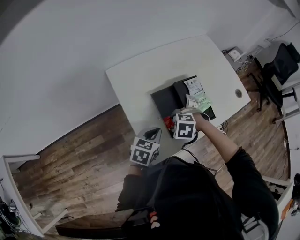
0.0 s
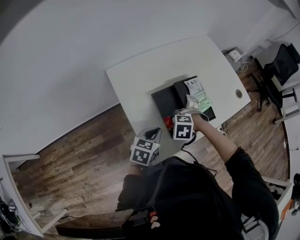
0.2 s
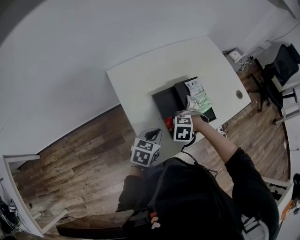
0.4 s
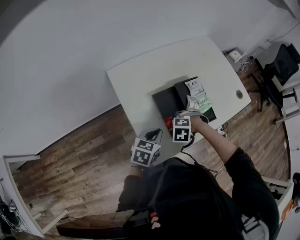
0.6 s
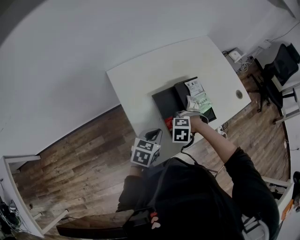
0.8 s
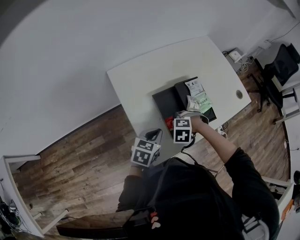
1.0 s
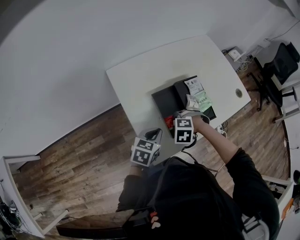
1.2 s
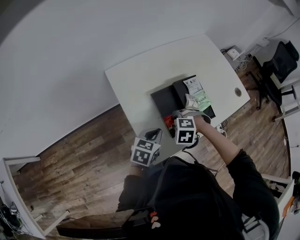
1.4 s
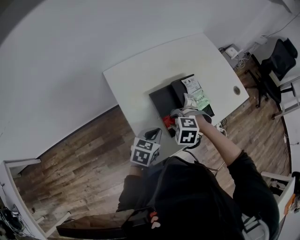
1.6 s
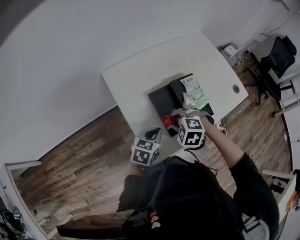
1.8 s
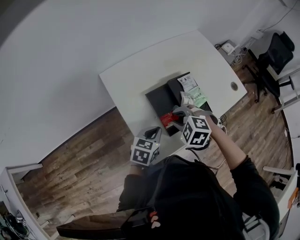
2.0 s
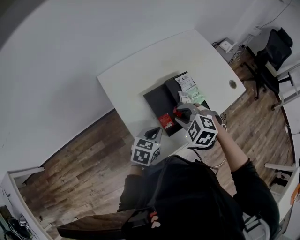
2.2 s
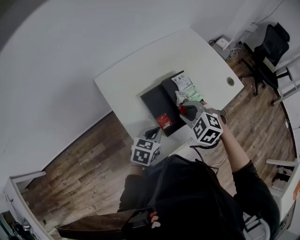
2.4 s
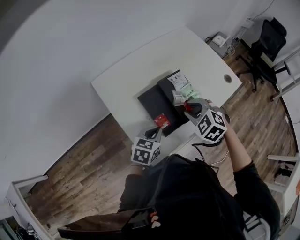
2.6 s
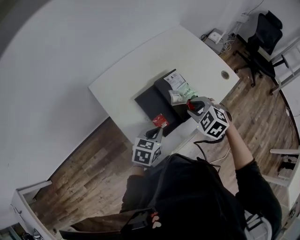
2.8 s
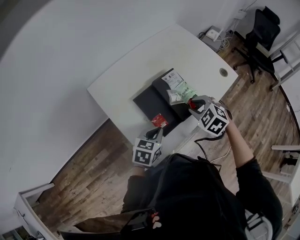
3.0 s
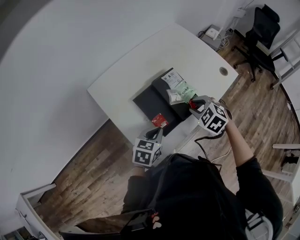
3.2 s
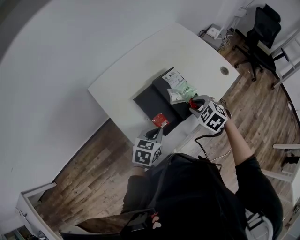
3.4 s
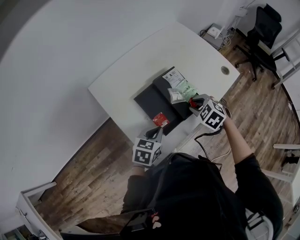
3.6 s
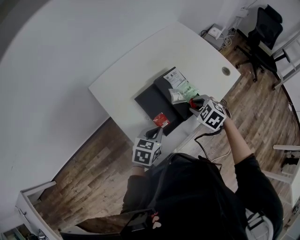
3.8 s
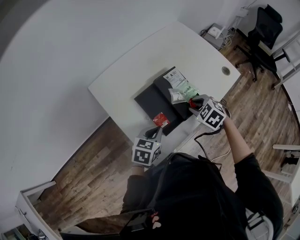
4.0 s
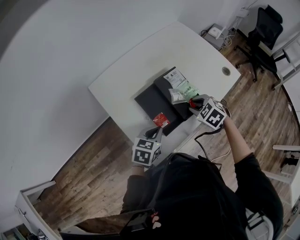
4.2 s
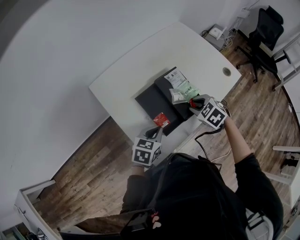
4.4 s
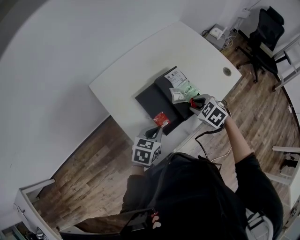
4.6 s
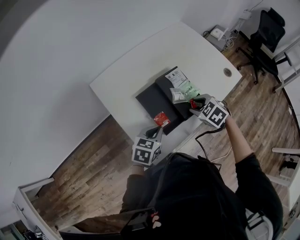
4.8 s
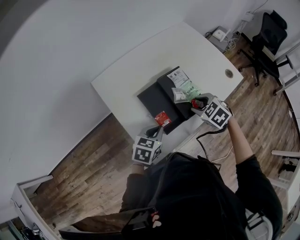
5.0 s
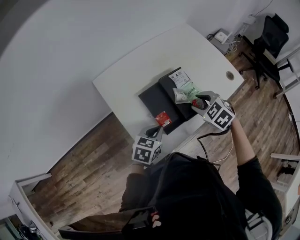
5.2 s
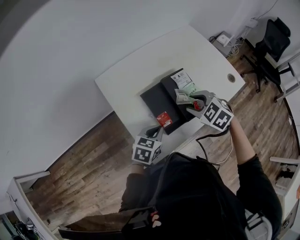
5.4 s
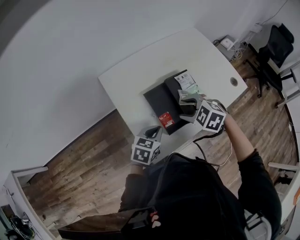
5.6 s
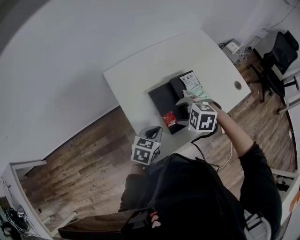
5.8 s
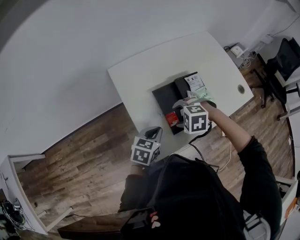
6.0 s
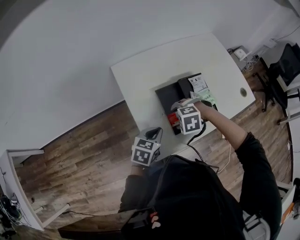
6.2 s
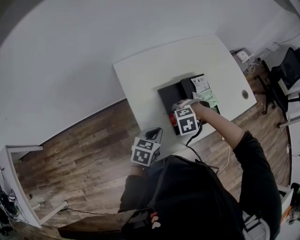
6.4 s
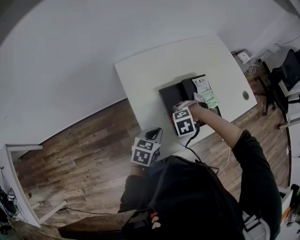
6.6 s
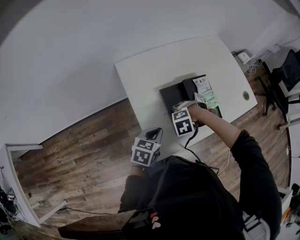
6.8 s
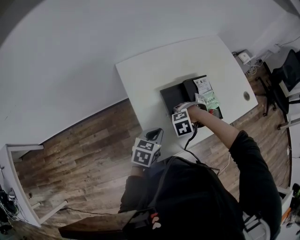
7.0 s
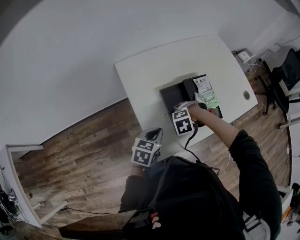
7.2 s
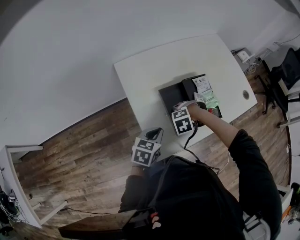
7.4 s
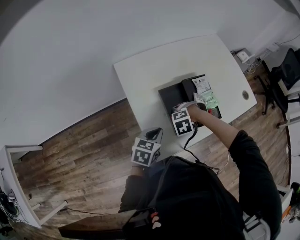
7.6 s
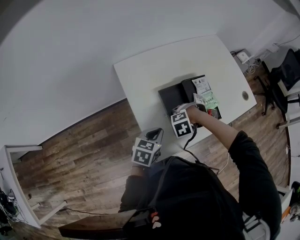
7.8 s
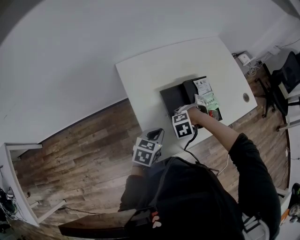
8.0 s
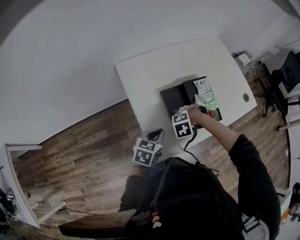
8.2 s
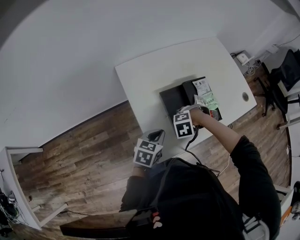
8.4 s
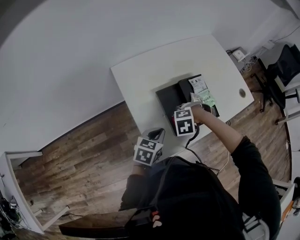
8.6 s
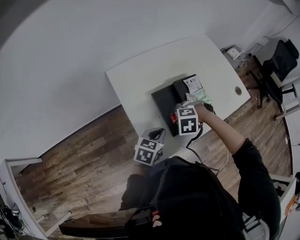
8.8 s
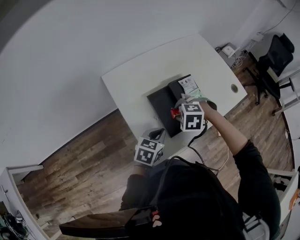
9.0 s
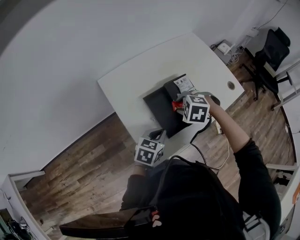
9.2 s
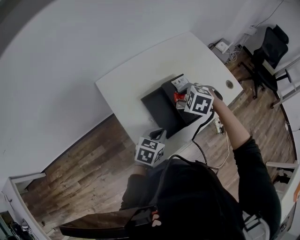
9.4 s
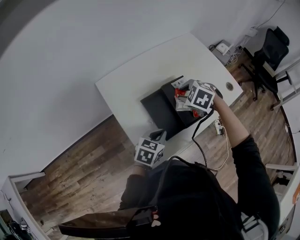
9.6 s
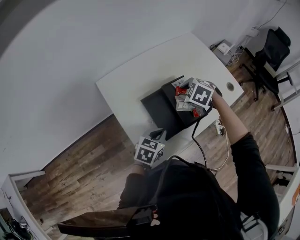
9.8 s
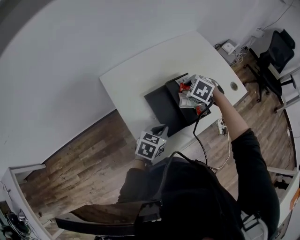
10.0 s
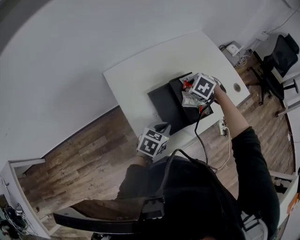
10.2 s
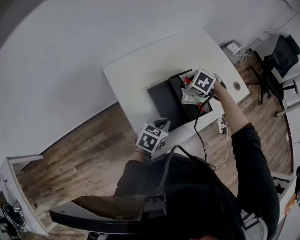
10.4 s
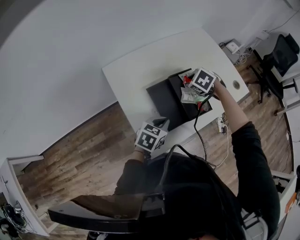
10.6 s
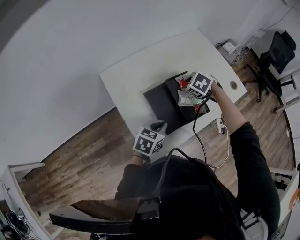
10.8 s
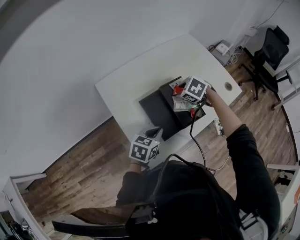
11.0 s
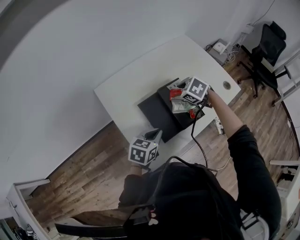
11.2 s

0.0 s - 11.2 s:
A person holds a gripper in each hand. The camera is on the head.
0.0 s - 1.6 s: The grippers make only small movements.
1.6 s - 3.2 s: The left gripper changes place by some 5 cm, while the right gripper moves roughly 15 cm, and changes its angle by some 40 degrees.
3.2 s - 4.8 s: The grippers make only small movements.
4.8 s - 6.4 s: The right gripper shifts by some 15 cm, rotates around the line of its fingers by approximately 60 degrees, counterclockwise from behind, and opens its fingers, while the left gripper changes place by about 5 cm.
6.4 s - 8.0 s: The right gripper closes.
8.0 s - 9.6 s: The left gripper moves about 10 cm, while the right gripper ends up roughly 20 cm from where it was, and twists approximately 40 degrees clockwise, seen from behind.
9.6 s - 11.2 s: There are only small adjustments of the grippers.

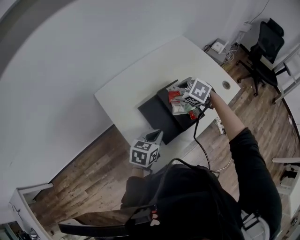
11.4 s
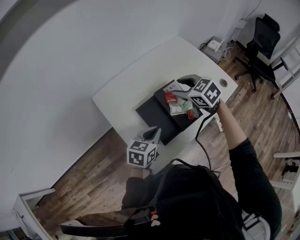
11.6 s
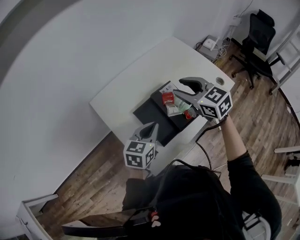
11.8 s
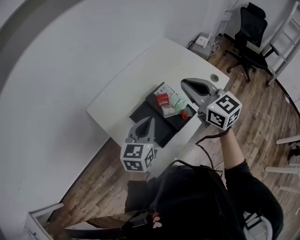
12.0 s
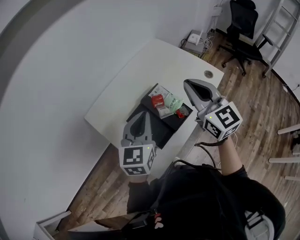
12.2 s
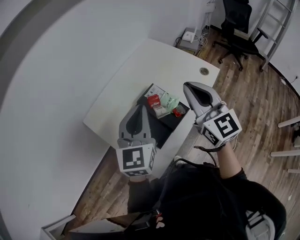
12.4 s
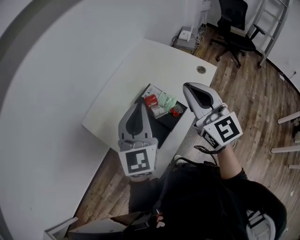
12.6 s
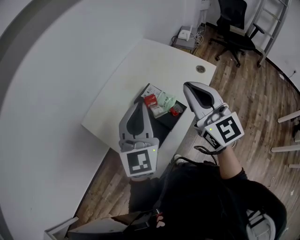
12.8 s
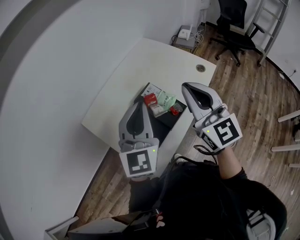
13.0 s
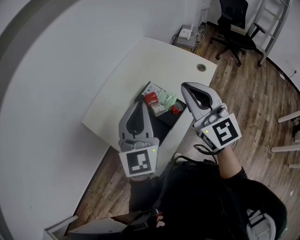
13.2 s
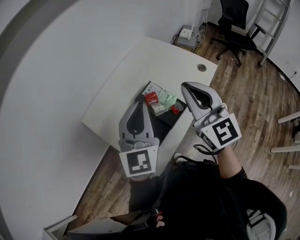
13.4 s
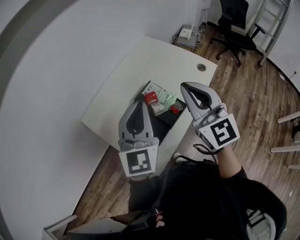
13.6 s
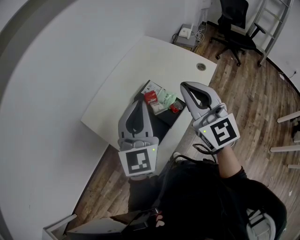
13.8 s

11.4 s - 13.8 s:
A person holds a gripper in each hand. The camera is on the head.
11.4 s - 12.6 s: The right gripper travels upward and backward by about 30 cm, angles its fingers upward, by some 60 degrees, and closes up, while the left gripper is displaced upward by about 25 cm, and tips its fingers upward by some 40 degrees.
12.6 s - 13.8 s: The grippers move only a little.

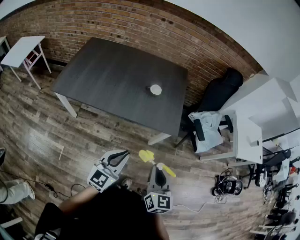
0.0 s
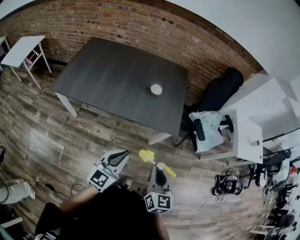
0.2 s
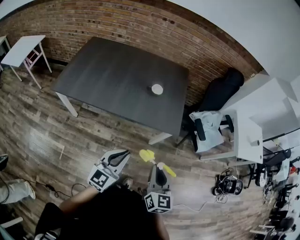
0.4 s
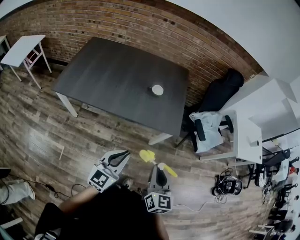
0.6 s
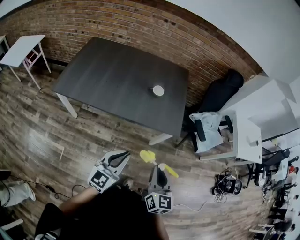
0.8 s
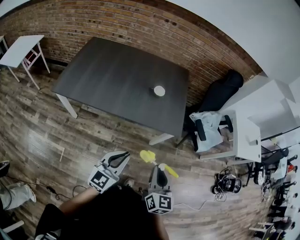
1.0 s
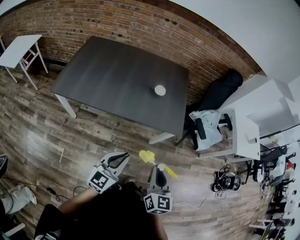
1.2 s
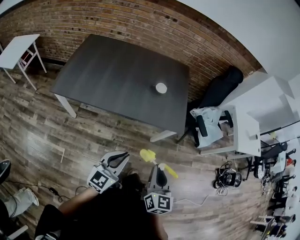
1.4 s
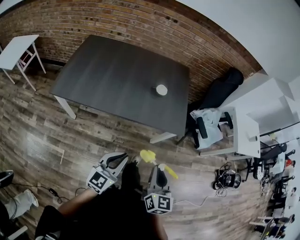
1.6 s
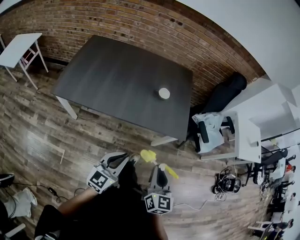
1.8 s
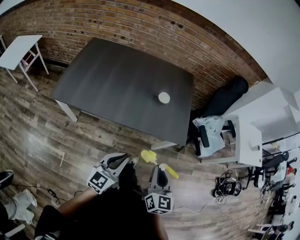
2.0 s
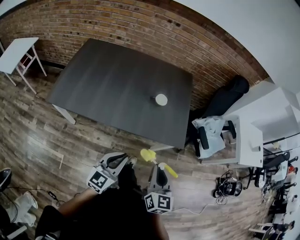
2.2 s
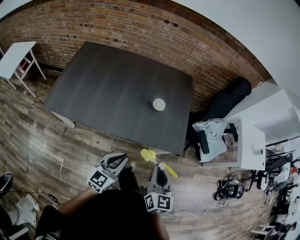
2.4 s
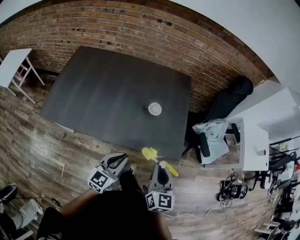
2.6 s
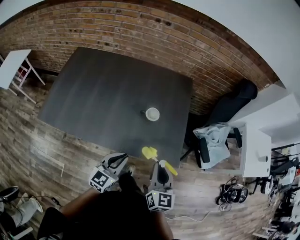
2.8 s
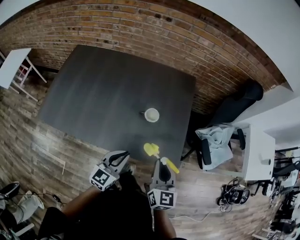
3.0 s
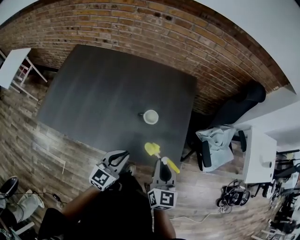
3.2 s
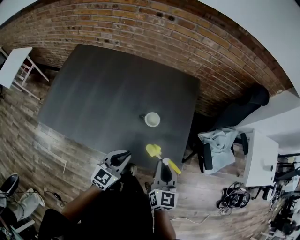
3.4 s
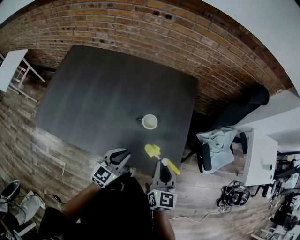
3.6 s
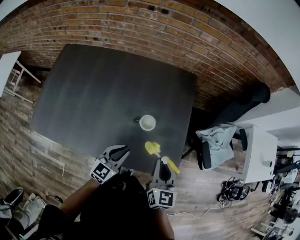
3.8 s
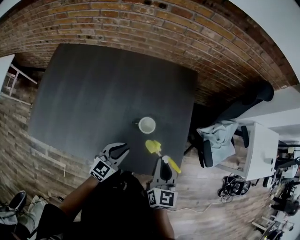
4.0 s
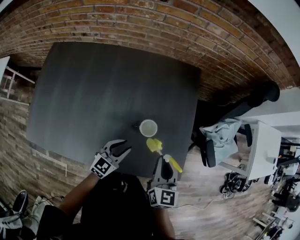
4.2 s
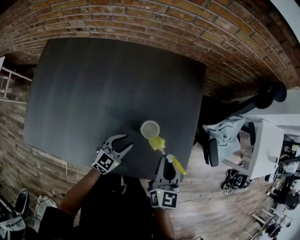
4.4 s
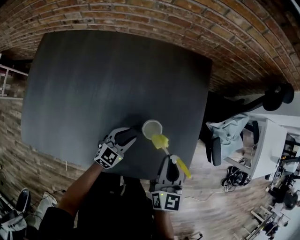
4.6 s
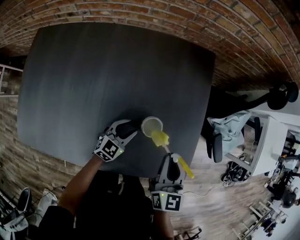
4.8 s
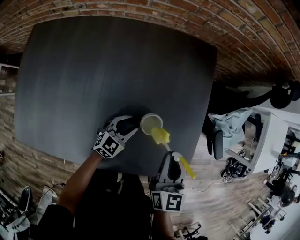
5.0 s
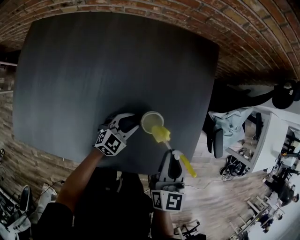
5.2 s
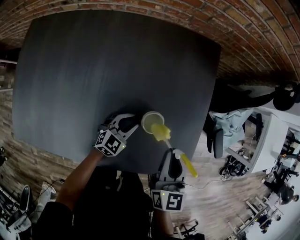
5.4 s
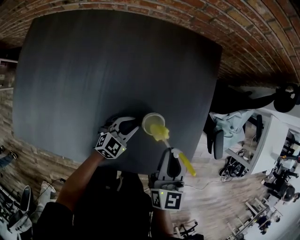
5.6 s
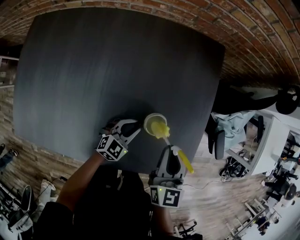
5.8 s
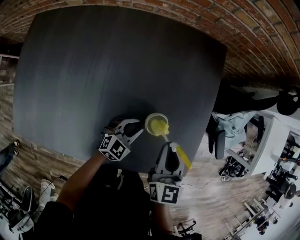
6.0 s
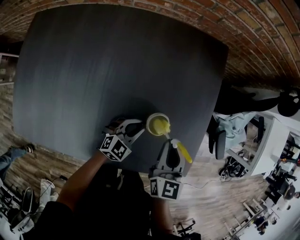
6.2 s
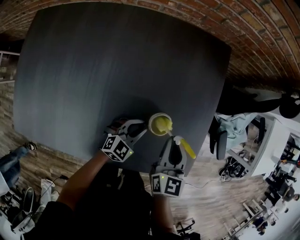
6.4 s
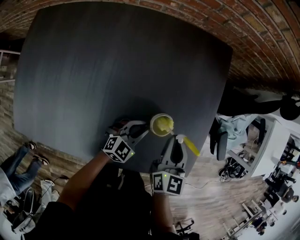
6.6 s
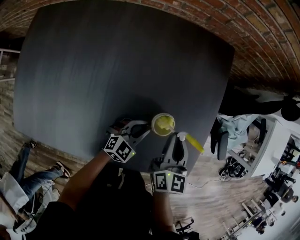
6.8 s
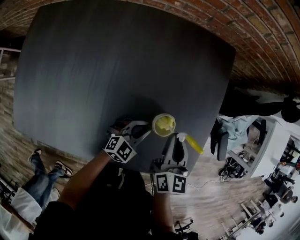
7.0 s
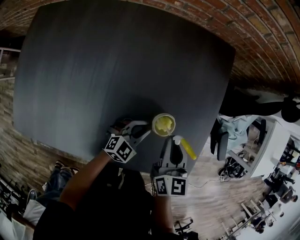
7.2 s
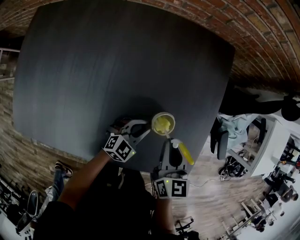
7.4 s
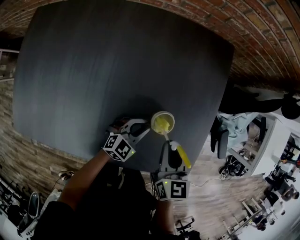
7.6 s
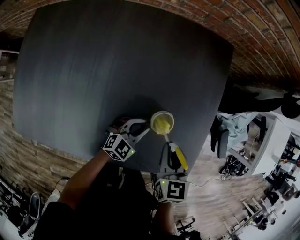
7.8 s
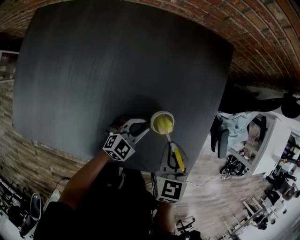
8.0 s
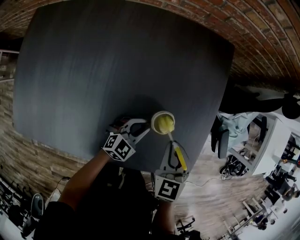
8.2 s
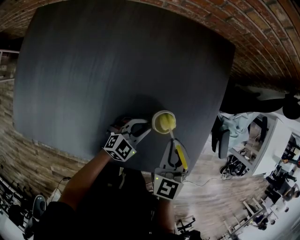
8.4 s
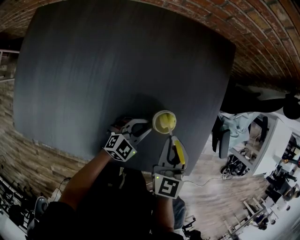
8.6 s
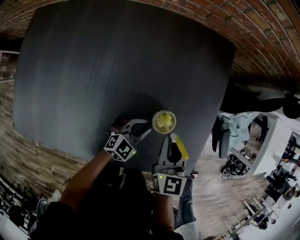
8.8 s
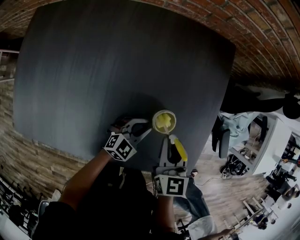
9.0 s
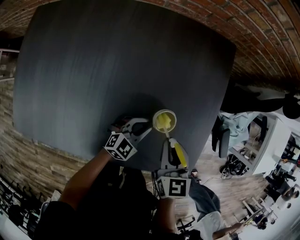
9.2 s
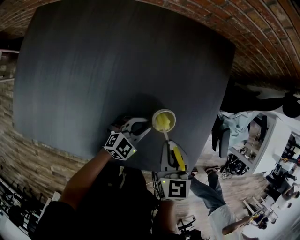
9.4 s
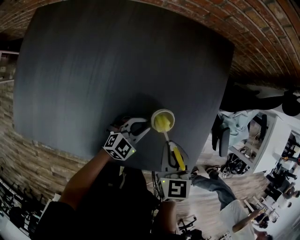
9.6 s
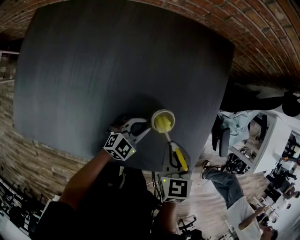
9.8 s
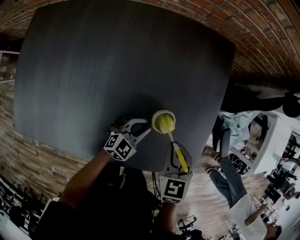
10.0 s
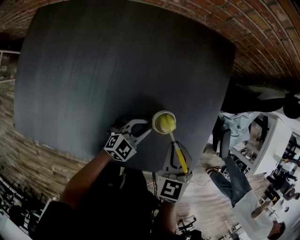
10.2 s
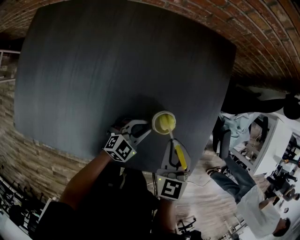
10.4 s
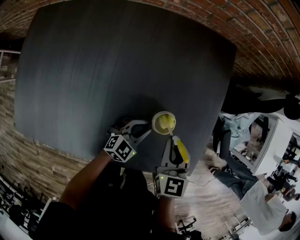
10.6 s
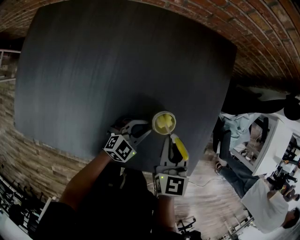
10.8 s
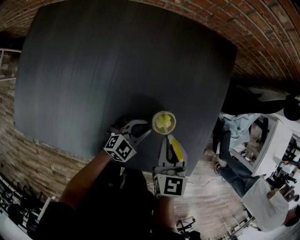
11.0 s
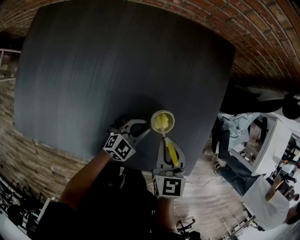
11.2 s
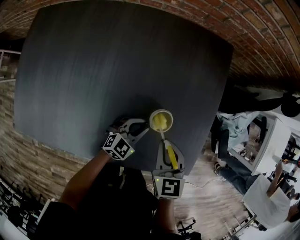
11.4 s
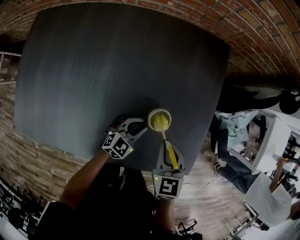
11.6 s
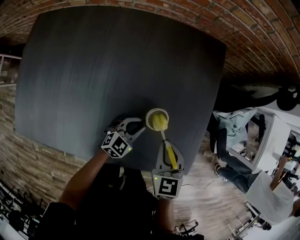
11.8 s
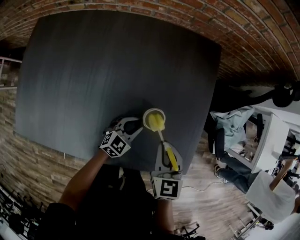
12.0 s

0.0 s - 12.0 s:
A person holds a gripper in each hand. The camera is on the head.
0.0 s - 1.6 s: The two grippers go roughly 10 cm to the left.
1.6 s - 3.0 s: The two grippers go some 35 cm forward.
3.0 s - 4.4 s: The grippers both shift forward and downward by roughly 25 cm.
4.4 s - 6.0 s: Both grippers move downward, approximately 10 cm.
6.0 s - 7.6 s: The grippers make only small movements.
10.4 s - 12.0 s: The grippers stay close to where they were, moving slightly.
